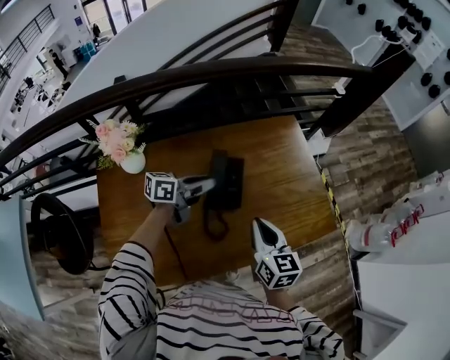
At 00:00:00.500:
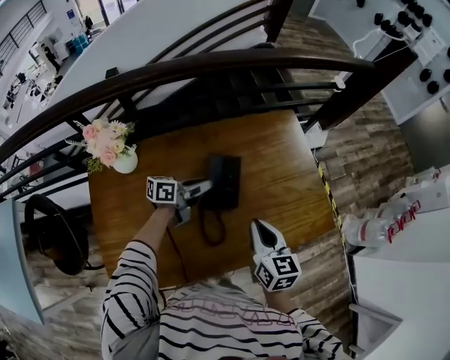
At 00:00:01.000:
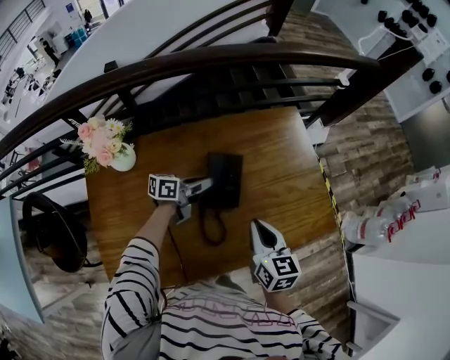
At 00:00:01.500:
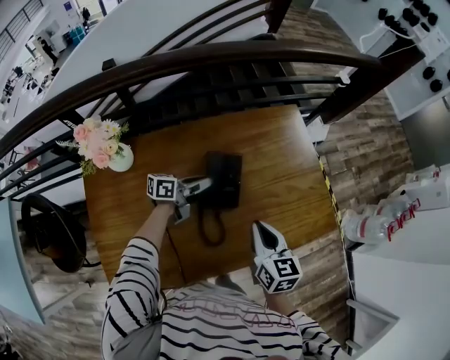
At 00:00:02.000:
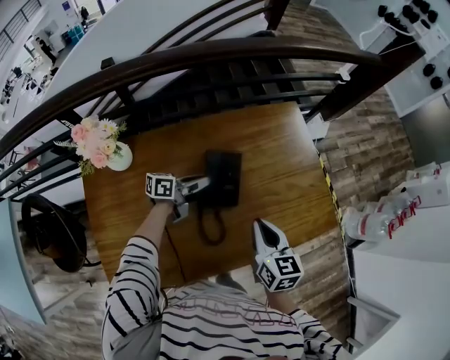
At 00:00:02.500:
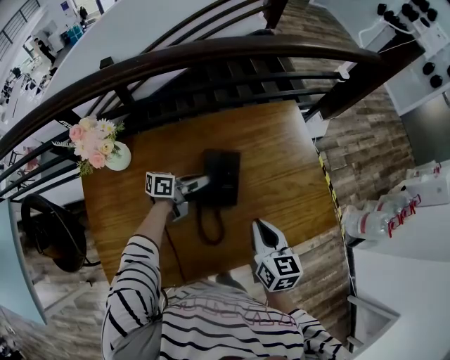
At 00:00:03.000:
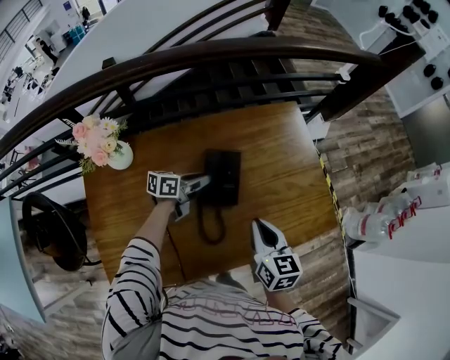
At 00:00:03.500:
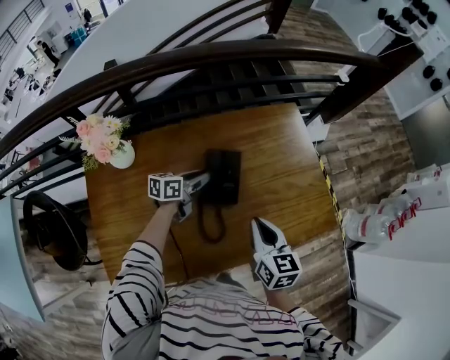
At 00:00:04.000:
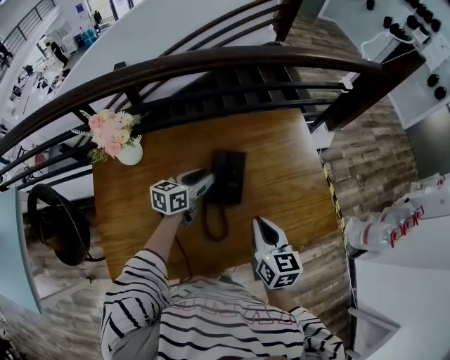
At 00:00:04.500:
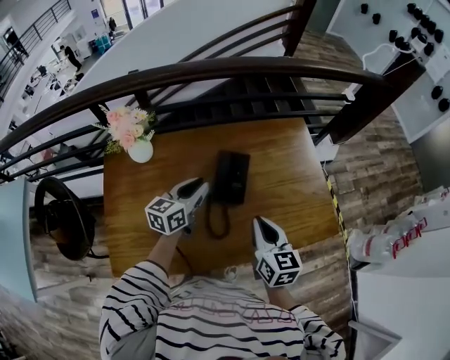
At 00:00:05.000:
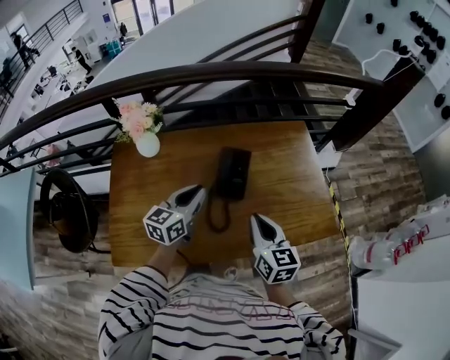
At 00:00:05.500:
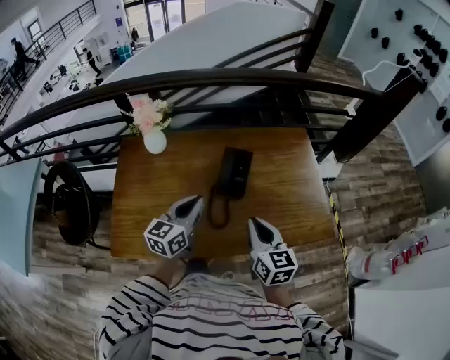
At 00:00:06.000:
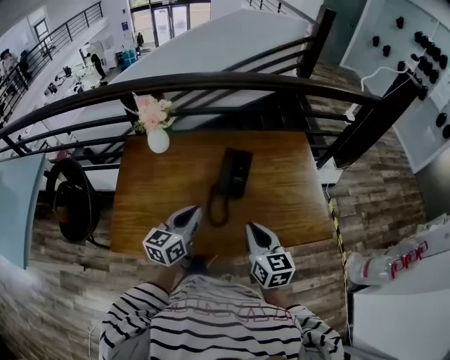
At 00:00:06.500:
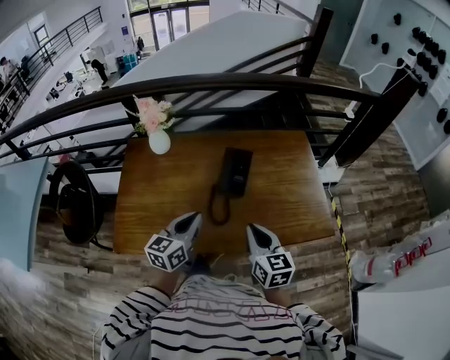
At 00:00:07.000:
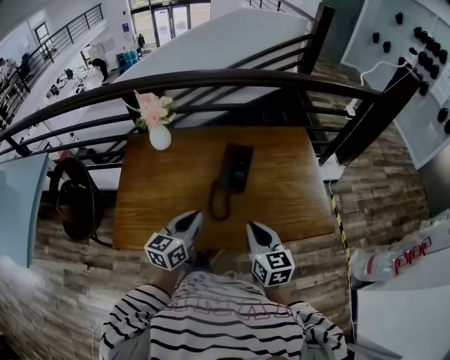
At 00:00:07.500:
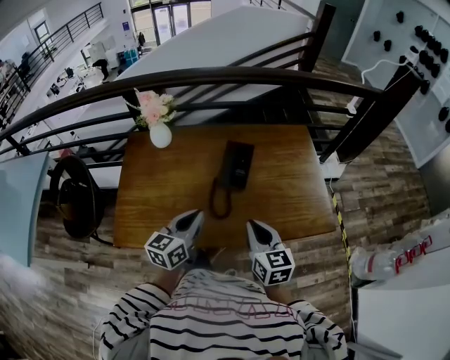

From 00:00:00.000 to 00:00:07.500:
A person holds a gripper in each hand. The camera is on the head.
From 00:00:00.000 to 00:00:02.000: The right gripper is displaced forward and downward by roughly 10 cm. The left gripper goes some 15 cm downward and forward.
From 00:00:02.000 to 00:00:04.000: The left gripper shifts approximately 5 cm upward, and turns by about 30 degrees.
From 00:00:04.000 to 00:00:05.500: The right gripper is displaced backward by some 15 cm. Meanwhile the left gripper travels backward and upward by about 30 cm, changes its angle by approximately 30 degrees, and closes.
From 00:00:05.500 to 00:00:07.500: The grippers both shift backward by approximately 10 cm.

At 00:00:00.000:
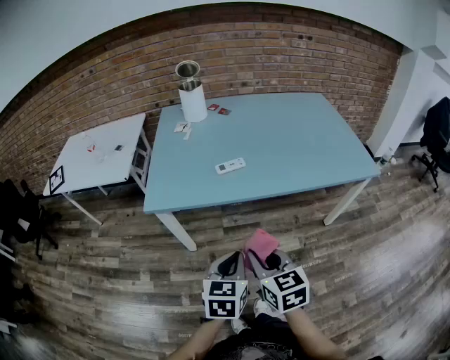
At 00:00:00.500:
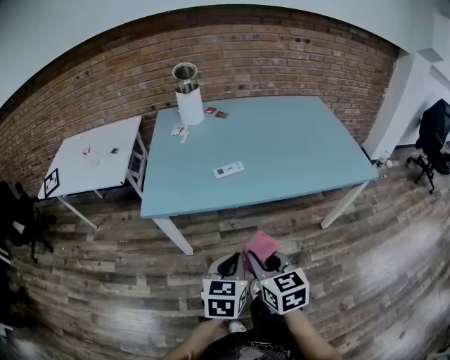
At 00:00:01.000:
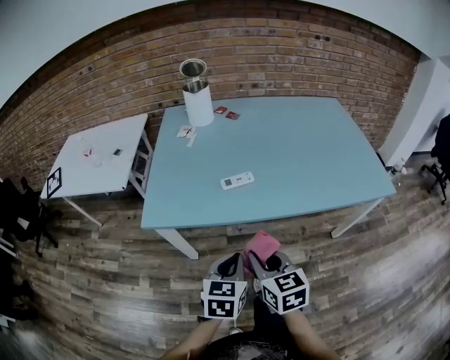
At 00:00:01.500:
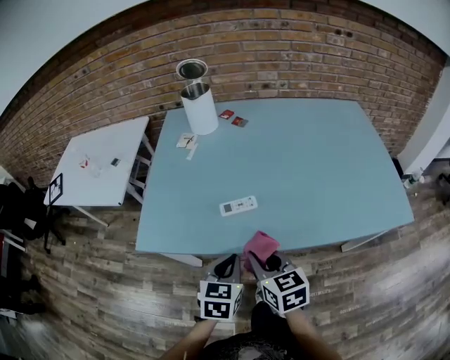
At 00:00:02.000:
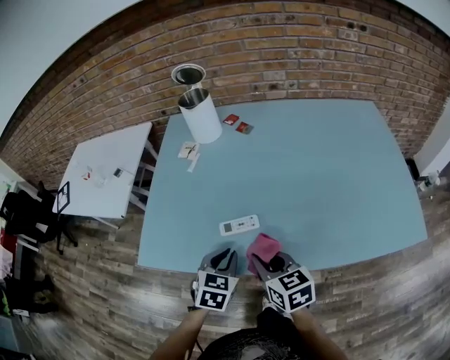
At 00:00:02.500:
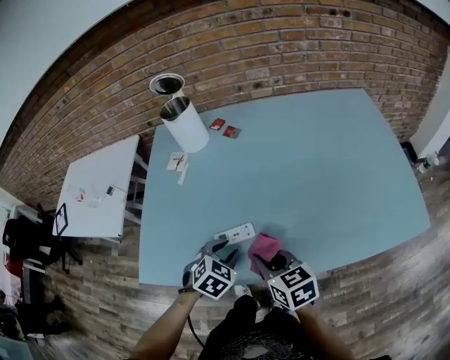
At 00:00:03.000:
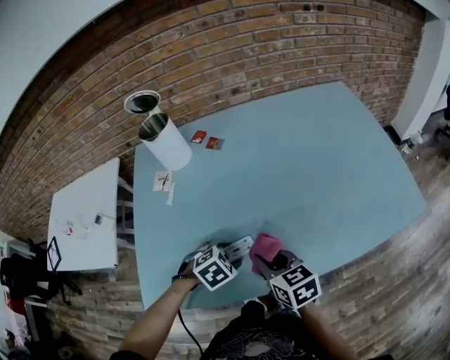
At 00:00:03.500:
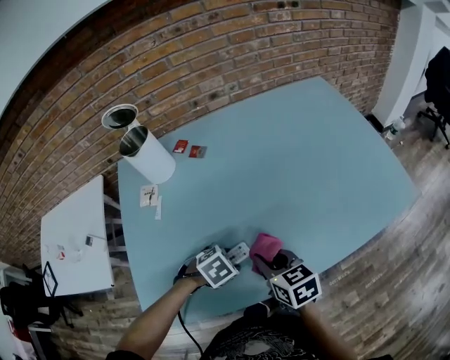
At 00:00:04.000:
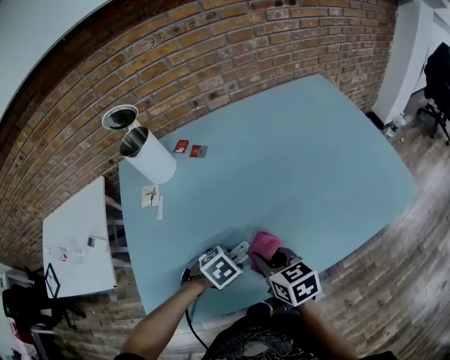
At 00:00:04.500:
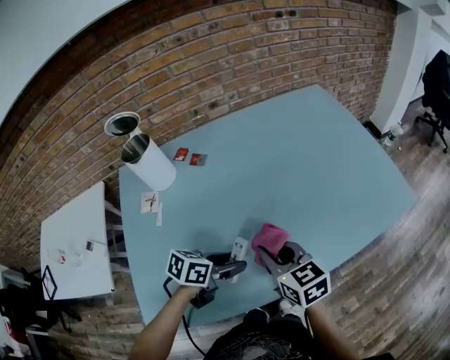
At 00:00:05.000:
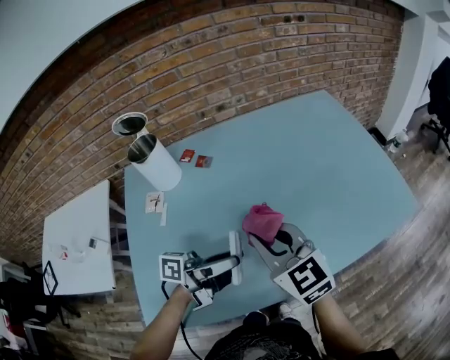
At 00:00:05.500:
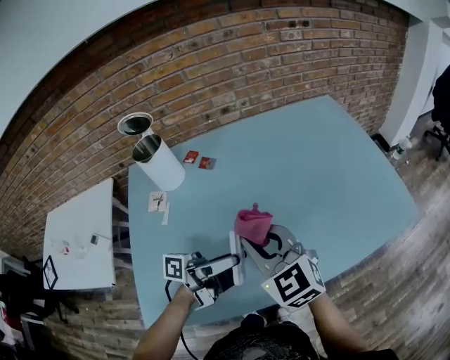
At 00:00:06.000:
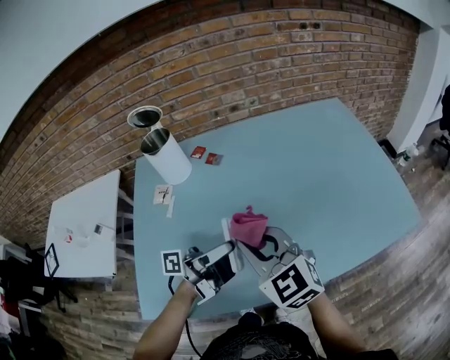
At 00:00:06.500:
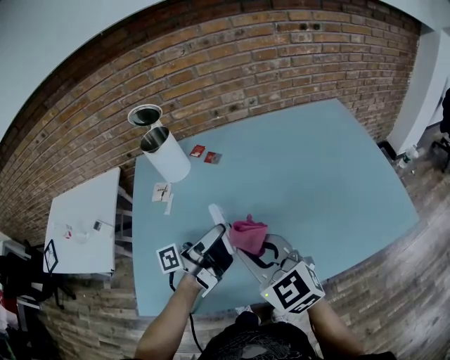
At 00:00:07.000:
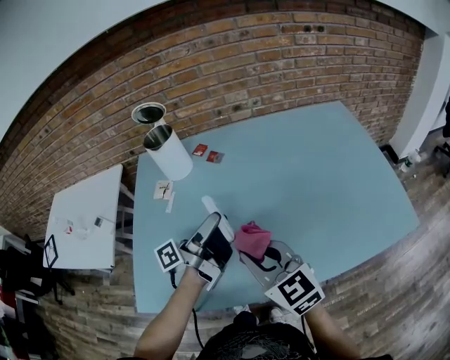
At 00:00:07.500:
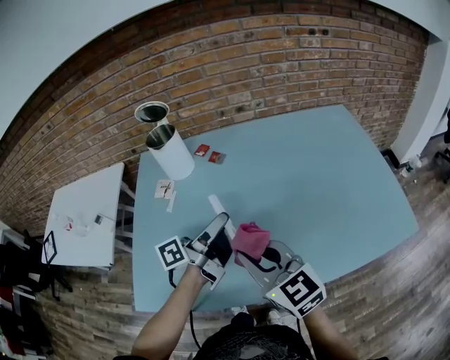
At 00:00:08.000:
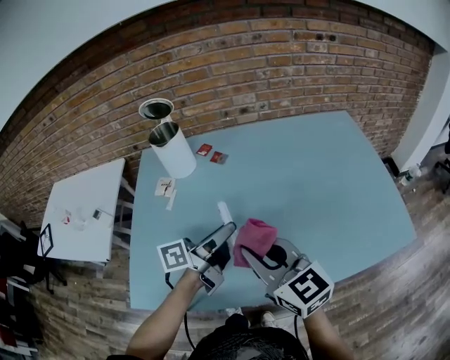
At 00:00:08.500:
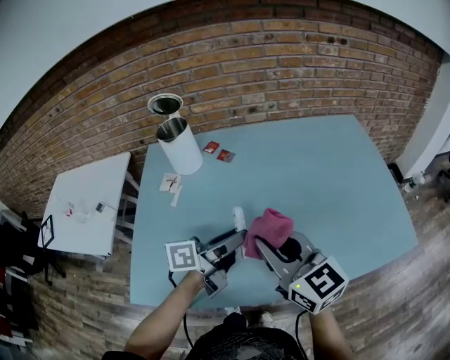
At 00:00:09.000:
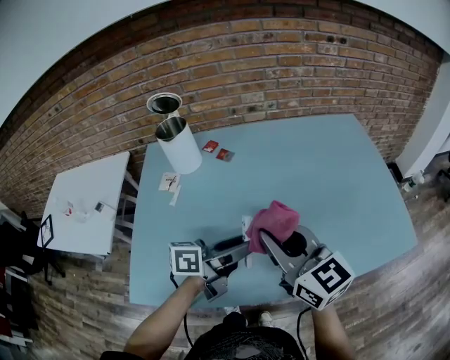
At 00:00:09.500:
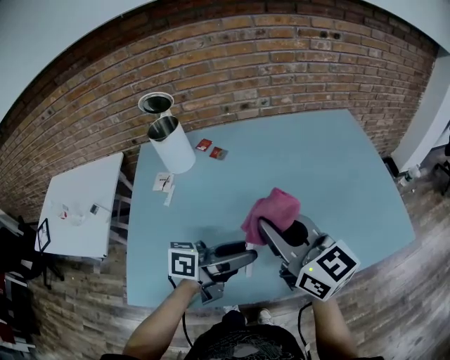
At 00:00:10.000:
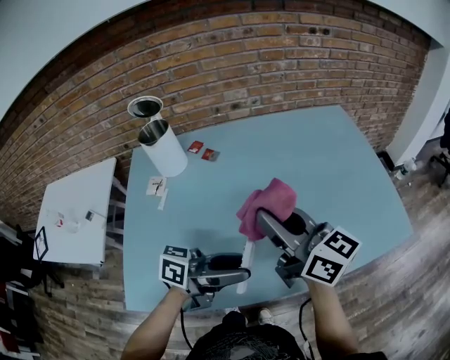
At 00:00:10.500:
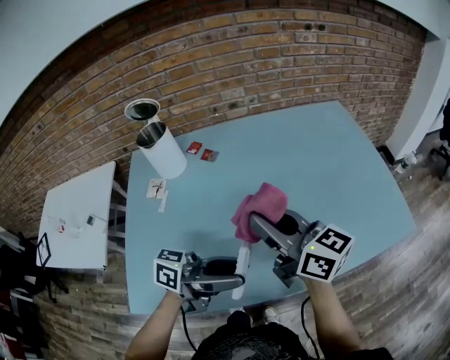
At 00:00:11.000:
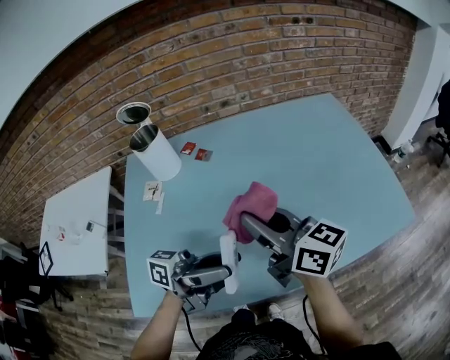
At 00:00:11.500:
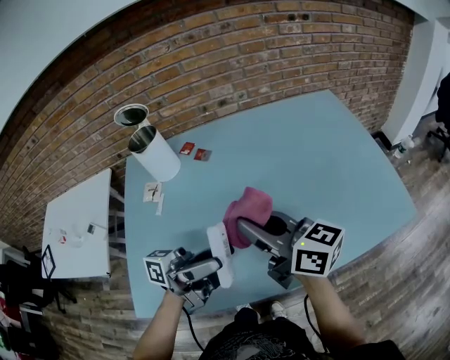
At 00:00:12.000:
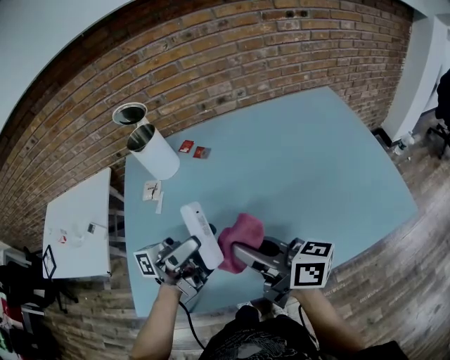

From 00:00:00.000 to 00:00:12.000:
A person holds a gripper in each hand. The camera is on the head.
From 00:00:00.000 to 00:00:02.000: The grippers both shift forward by some 30 cm.
From 00:00:02.000 to 00:00:04.000: The right gripper ends up about 10 cm from where it was. The left gripper travels downward by some 10 cm, angles its fingers downward, by approximately 30 degrees, and opens its fingers.
From 00:00:04.000 to 00:00:06.000: The grippers both shift upward by about 20 cm. The left gripper points its fingers about 100 degrees further upward. Meanwhile the right gripper rolls counterclockwise, seen from behind, by approximately 40 degrees.
From 00:00:06.000 to 00:00:08.000: The right gripper turns by about 20 degrees. Meanwhile the left gripper swivels about 30 degrees.
From 00:00:08.000 to 00:00:10.000: The left gripper travels backward and to the right by roughly 10 cm, and swivels roughly 40 degrees. The right gripper shifts some 5 cm forward, and rotates some 20 degrees.
From 00:00:10.000 to 00:00:12.000: The right gripper shifts by roughly 10 cm, and swivels approximately 30 degrees; the left gripper moves approximately 10 cm, and turns by some 30 degrees.

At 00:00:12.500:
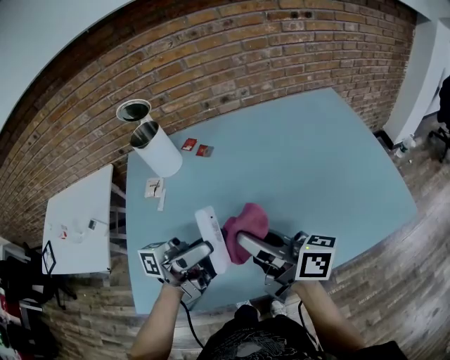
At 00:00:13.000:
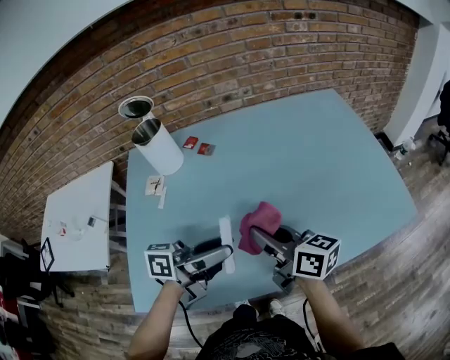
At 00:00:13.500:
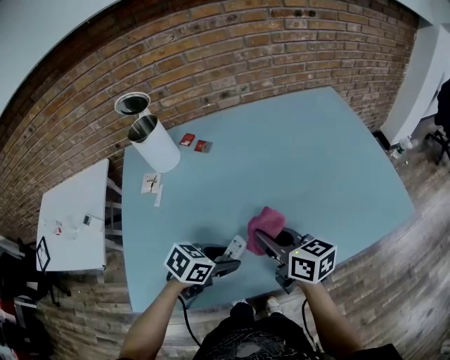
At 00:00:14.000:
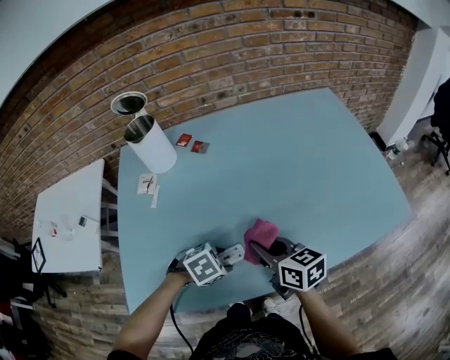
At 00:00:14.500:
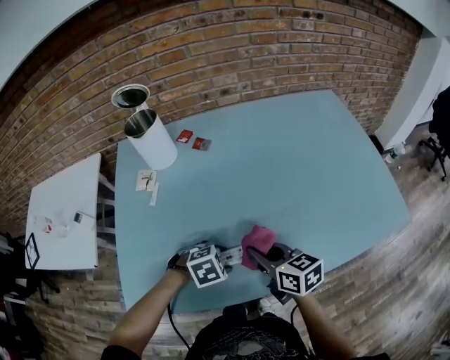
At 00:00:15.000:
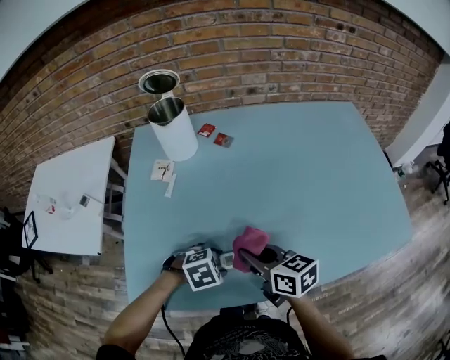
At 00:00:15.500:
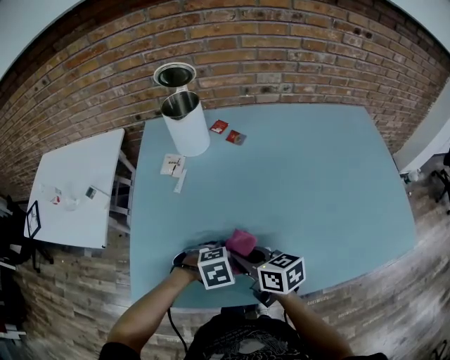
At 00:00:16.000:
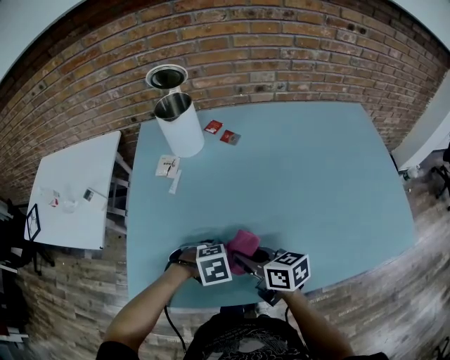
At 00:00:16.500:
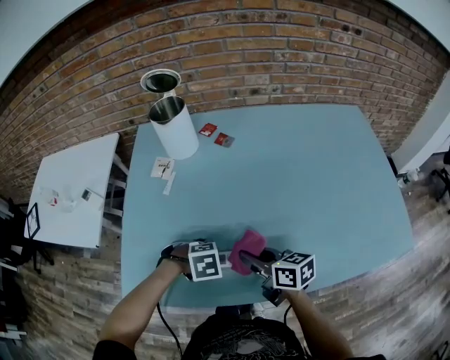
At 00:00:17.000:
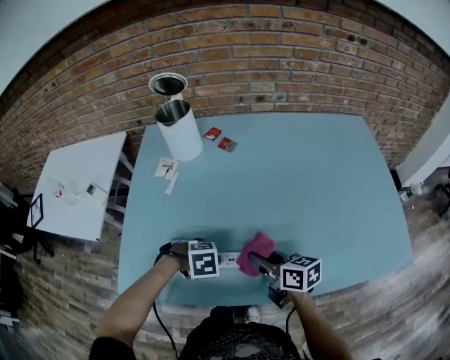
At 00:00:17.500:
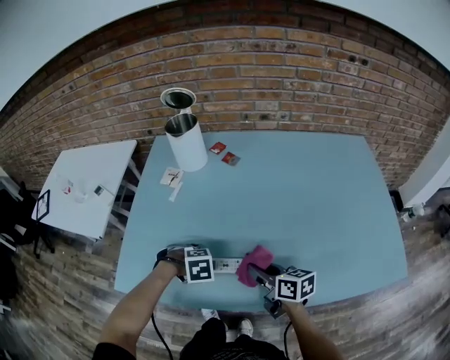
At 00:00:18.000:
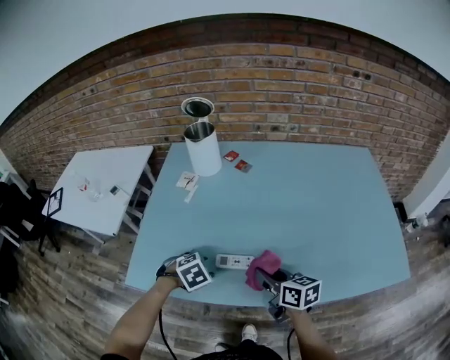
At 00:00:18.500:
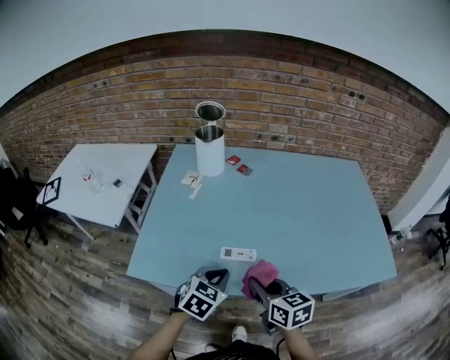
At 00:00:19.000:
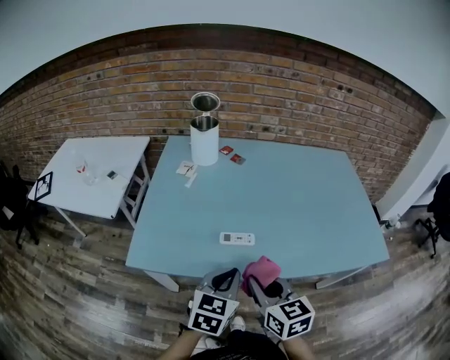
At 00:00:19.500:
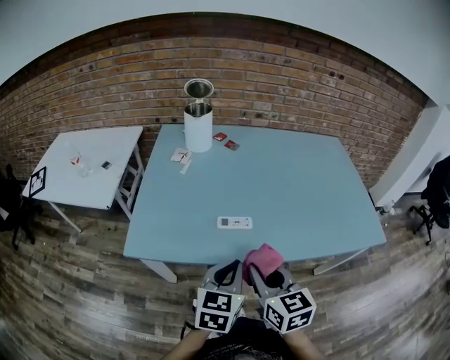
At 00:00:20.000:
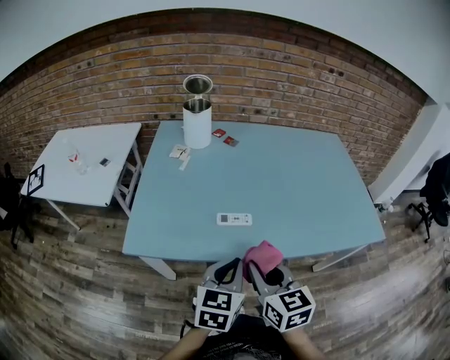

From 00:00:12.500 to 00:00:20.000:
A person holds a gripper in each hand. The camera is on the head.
From 00:00:12.500 to 00:00:14.500: The left gripper travels downward by approximately 30 cm, and tips its fingers downward by some 100 degrees, while the right gripper moves downward, some 15 cm, and points its fingers approximately 30 degrees further downward.
From 00:00:14.500 to 00:00:16.500: The left gripper shifts by about 5 cm.
From 00:00:16.500 to 00:00:18.000: The left gripper turns by about 30 degrees. The right gripper ends up some 5 cm from where it was.
From 00:00:18.000 to 00:00:20.000: The right gripper heads backward and upward, covering about 20 cm, and changes its angle by some 30 degrees; the left gripper travels upward, backward and to the right by roughly 20 cm, angles its fingers upward, by about 50 degrees, and closes its fingers.
